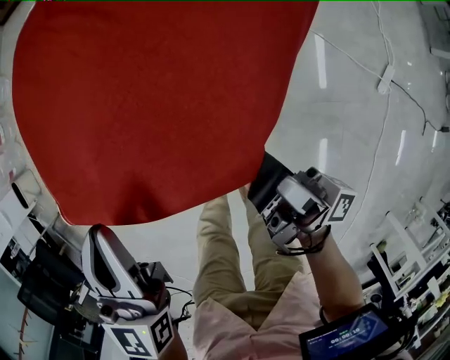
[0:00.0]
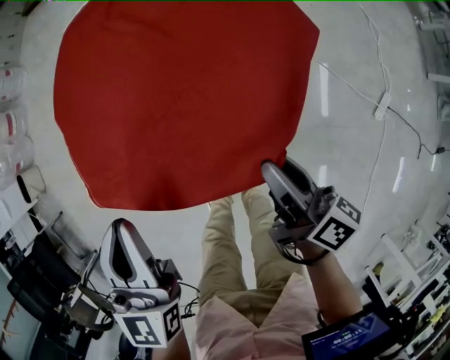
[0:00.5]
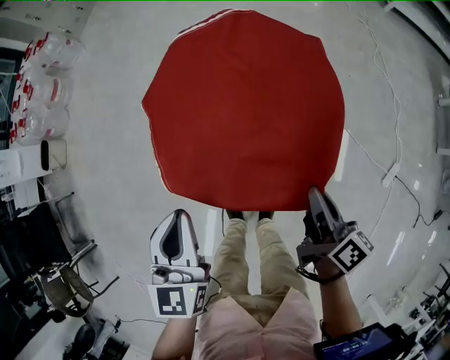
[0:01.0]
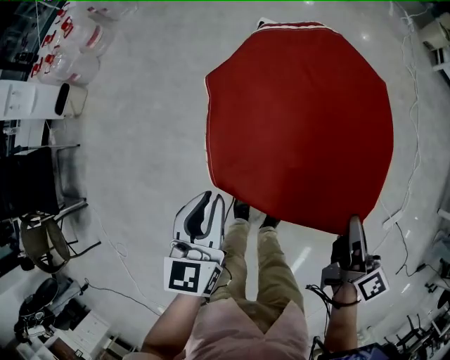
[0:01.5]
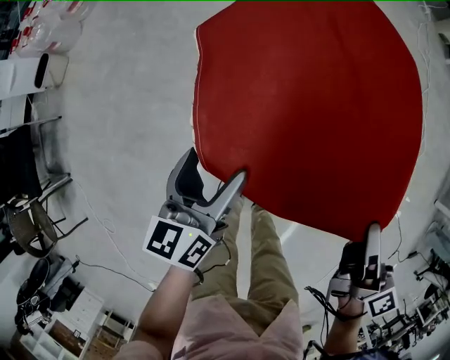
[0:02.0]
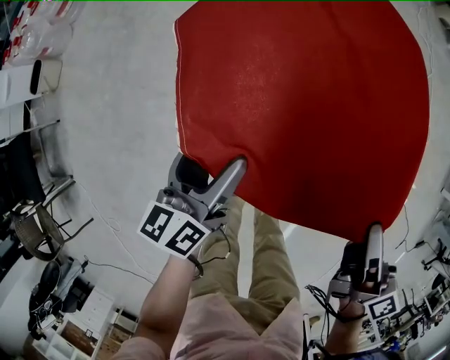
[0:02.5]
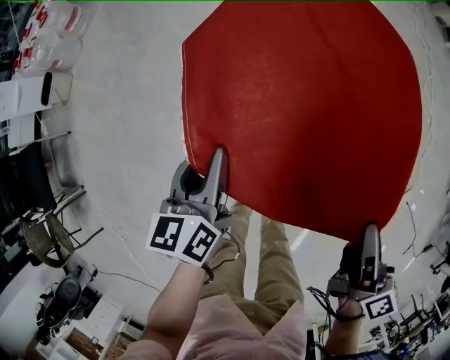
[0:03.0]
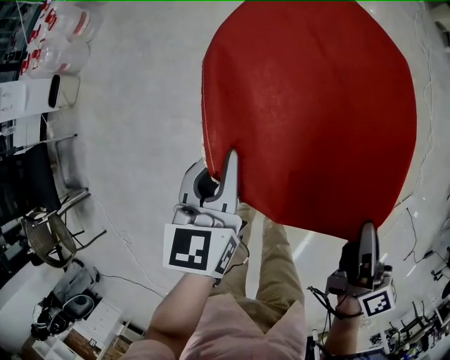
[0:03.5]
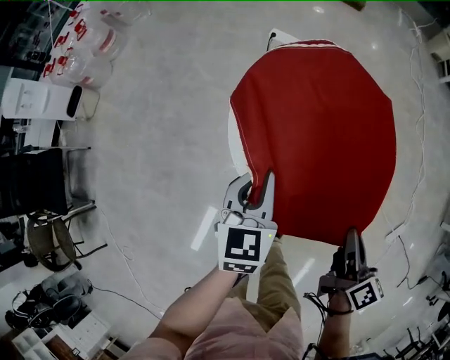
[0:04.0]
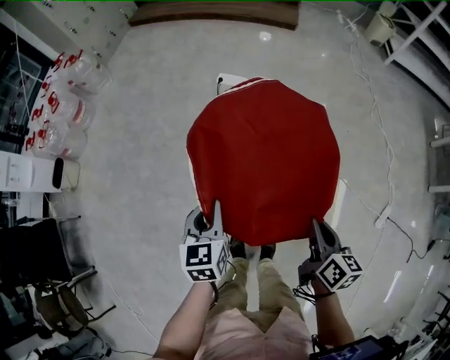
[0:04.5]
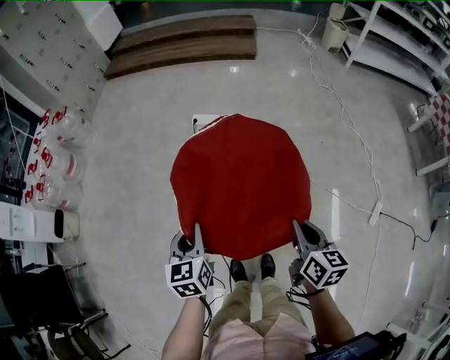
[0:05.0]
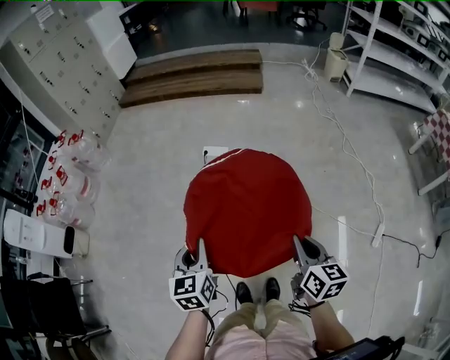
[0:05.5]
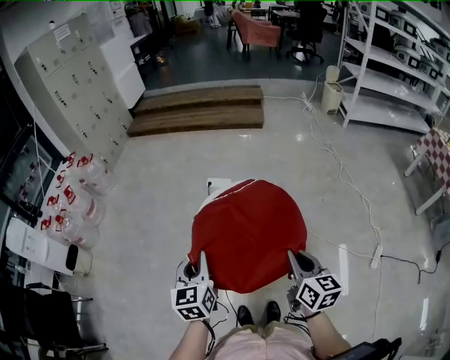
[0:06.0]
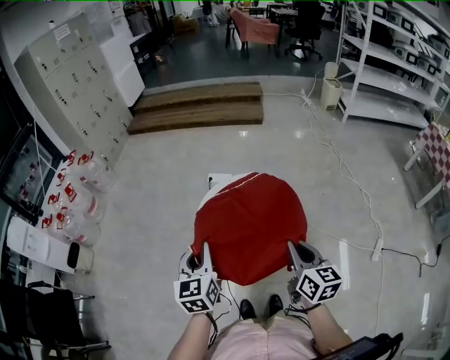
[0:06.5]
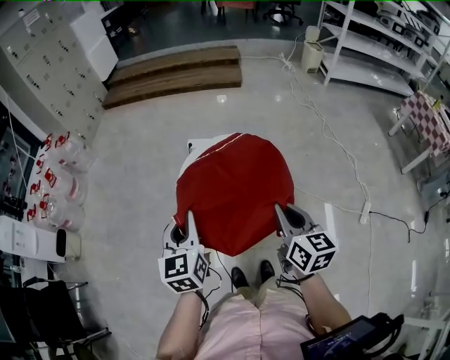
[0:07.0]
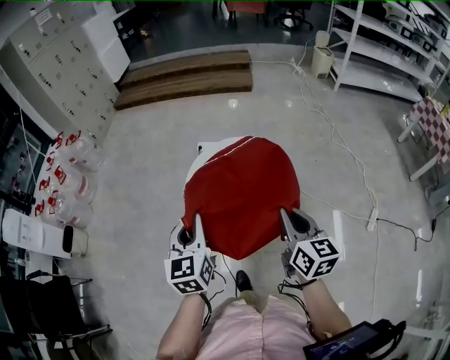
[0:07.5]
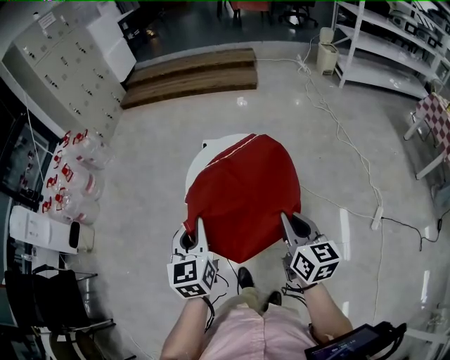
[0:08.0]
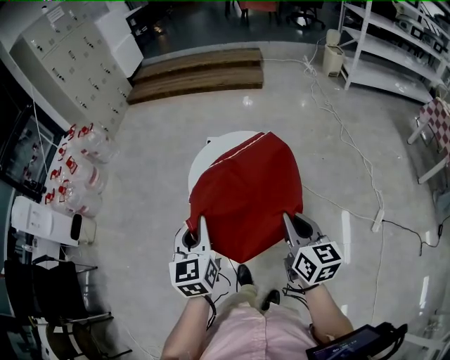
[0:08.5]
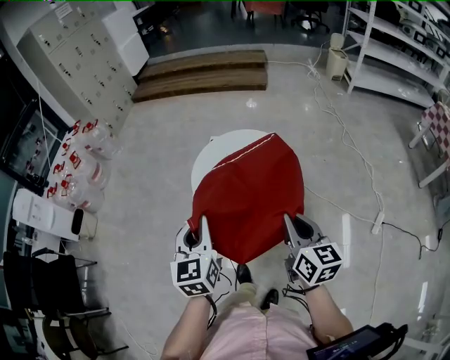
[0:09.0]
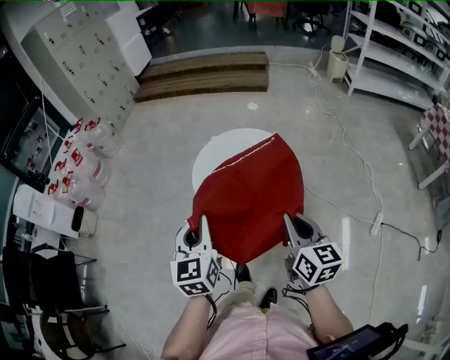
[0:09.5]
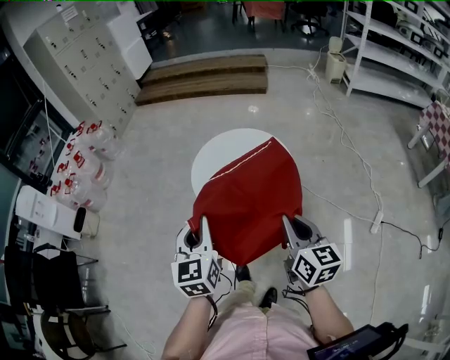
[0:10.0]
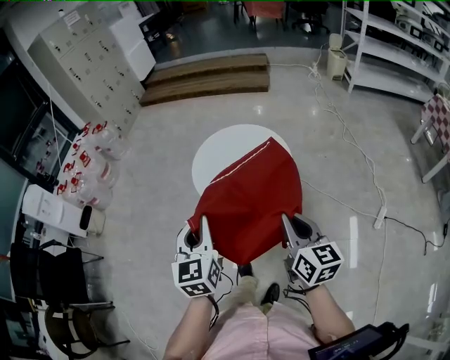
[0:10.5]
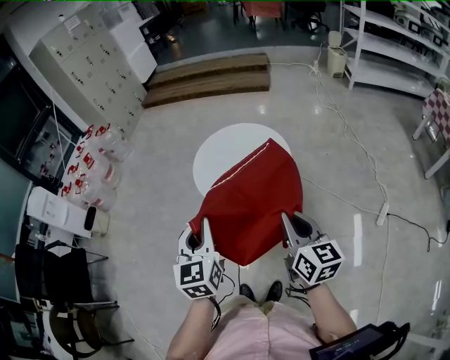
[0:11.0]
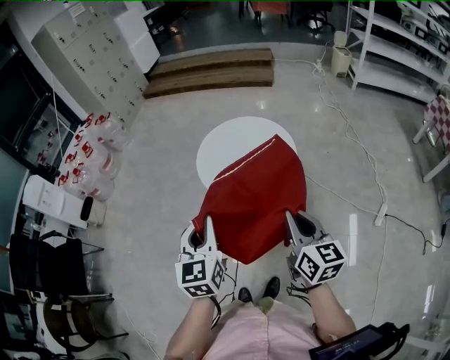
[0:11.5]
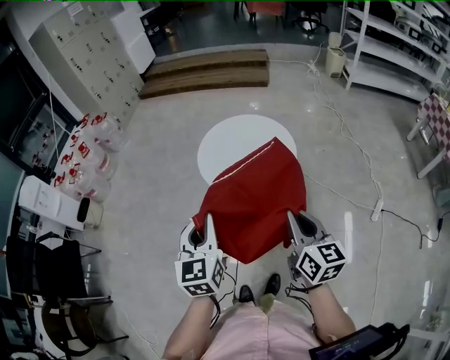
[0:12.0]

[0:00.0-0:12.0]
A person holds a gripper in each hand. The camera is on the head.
0:00.0 to 0:02.0: The right gripper heads upward, covering roughly 10 cm, tips its fingers downward by roughly 30 degrees, and closes up. The left gripper is displaced to the left and downward by roughly 15 cm, swivels some 30 degrees, and opens up.
0:02.0 to 0:04.0: The left gripper shifts approximately 10 cm to the right and upward, turns by roughly 30 degrees, and closes.
0:04.0 to 0:06.0: Both grippers travel together upward, approximately 25 cm. The right gripper swivels about 30 degrees.
0:06.0 to 0:08.0: Both grippers move backward, approximately 5 cm.
0:08.0 to 0:10.0: The two grippers go approximately 10 cm backward.
0:10.0 to 0:12.0: The grippers both shift backward by some 10 cm.

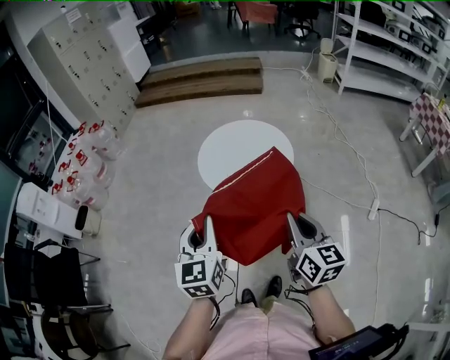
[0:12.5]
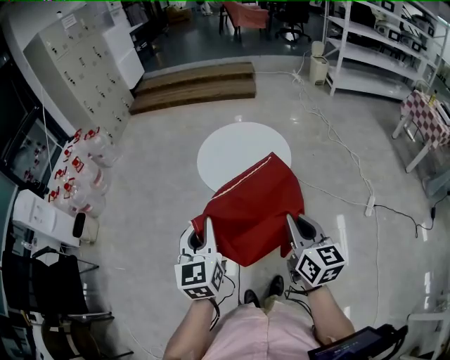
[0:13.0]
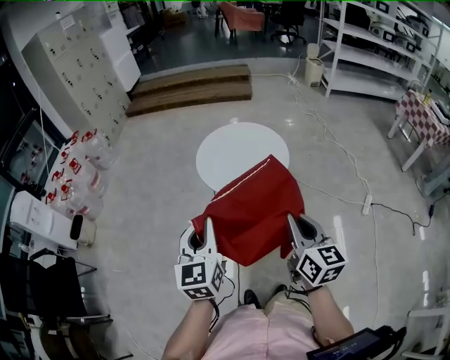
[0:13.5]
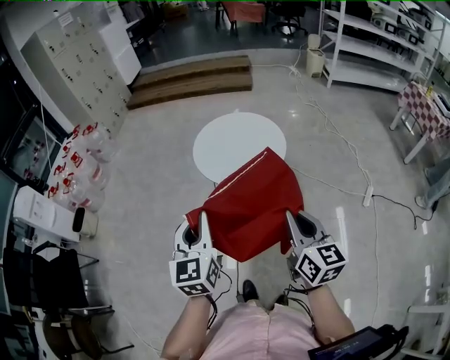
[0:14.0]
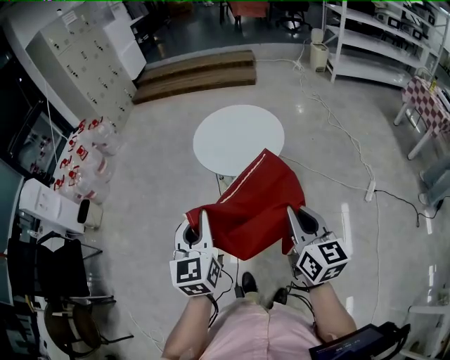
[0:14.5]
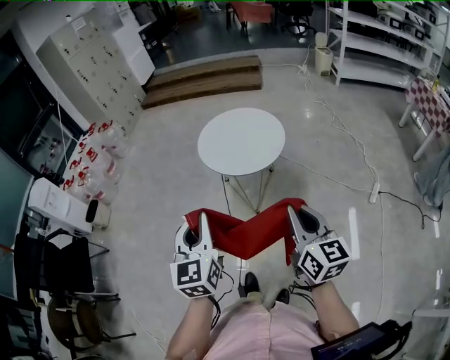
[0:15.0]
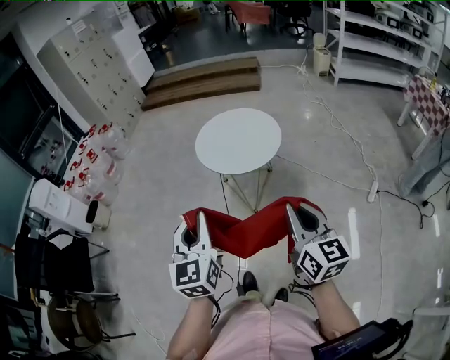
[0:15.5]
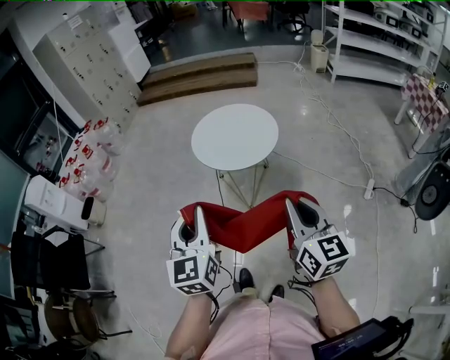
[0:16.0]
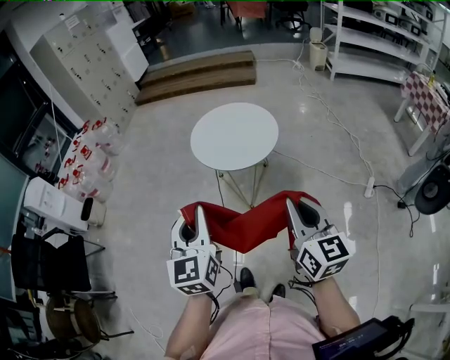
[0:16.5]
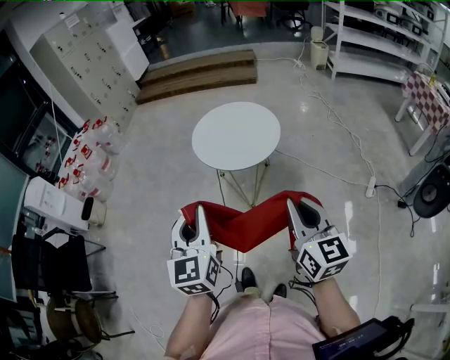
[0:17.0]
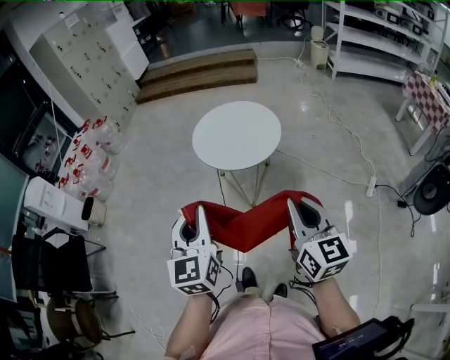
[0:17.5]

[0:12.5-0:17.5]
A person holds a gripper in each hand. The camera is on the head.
0:12.5 to 0:15.0: Both grippers travel together backward, some 15 cm.
0:15.0 to 0:17.5: The grippers make only small movements.

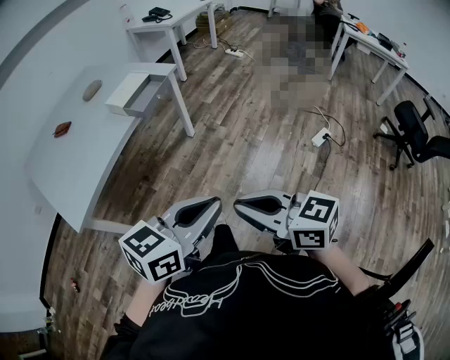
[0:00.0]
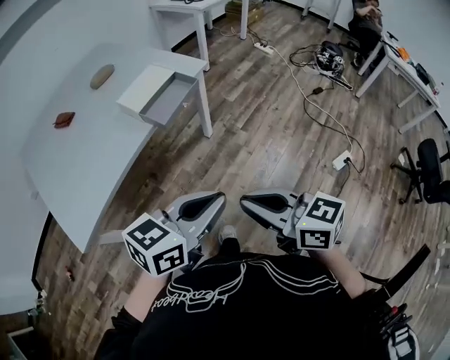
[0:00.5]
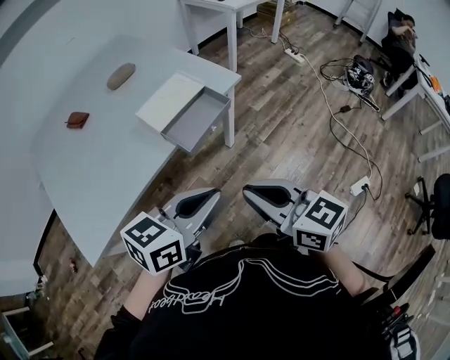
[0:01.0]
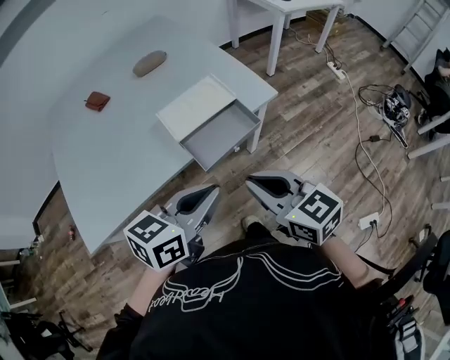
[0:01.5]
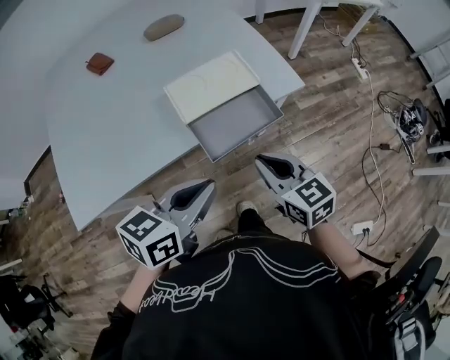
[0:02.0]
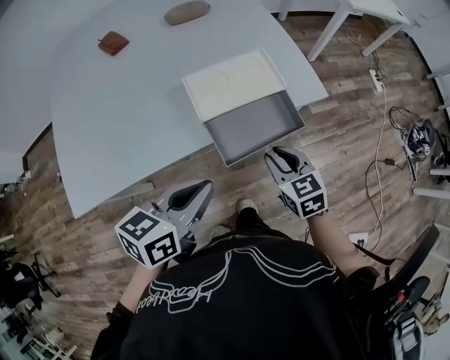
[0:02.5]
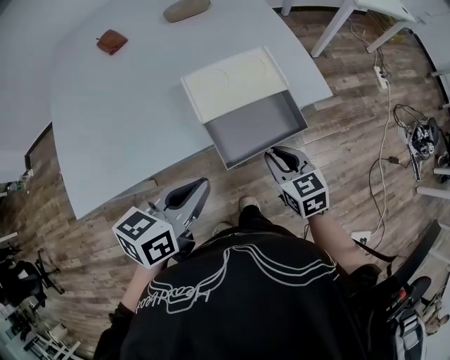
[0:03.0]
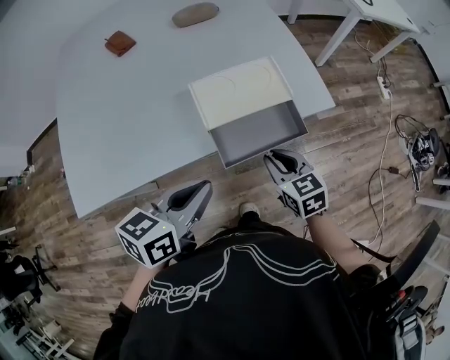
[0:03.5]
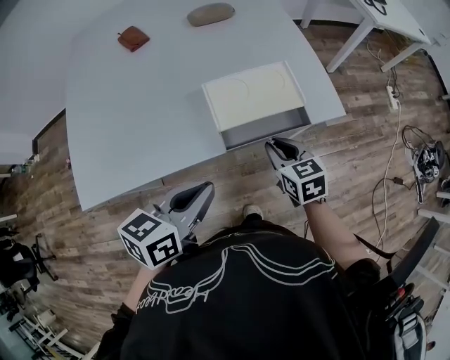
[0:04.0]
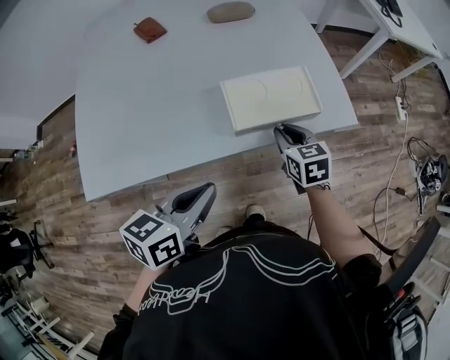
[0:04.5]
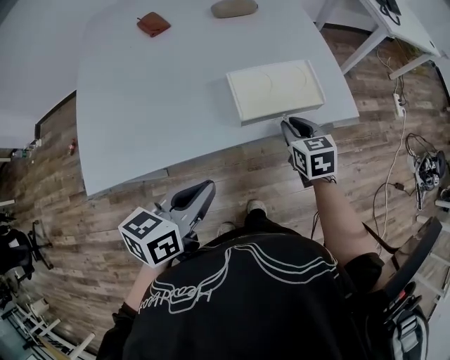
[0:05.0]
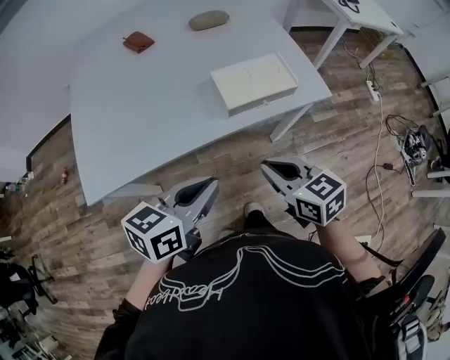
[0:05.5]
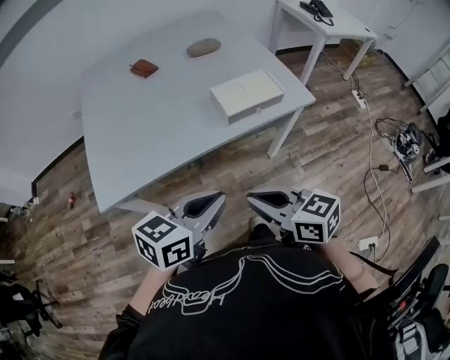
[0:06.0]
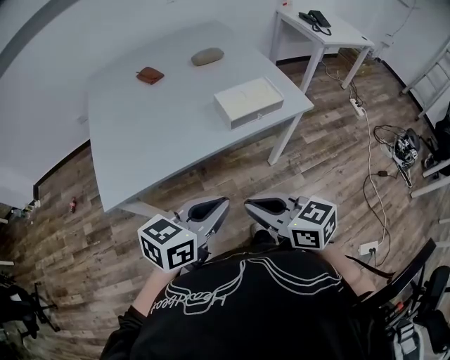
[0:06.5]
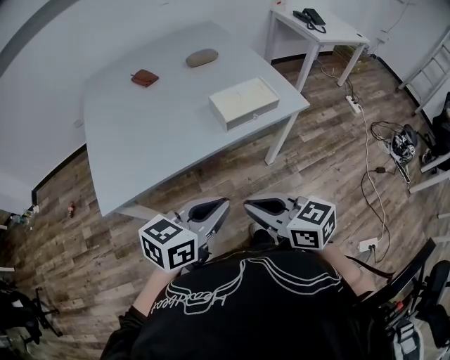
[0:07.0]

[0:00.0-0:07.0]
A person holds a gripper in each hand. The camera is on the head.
0:00.0 to 0:02.0: The pair of grippers is taken about 50 cm. The left gripper turns by some 40 degrees, while the right gripper rotates roughly 20 degrees.
0:02.0 to 0:03.5: The right gripper shifts some 10 cm downward and forward. The left gripper goes about 5 cm to the left.
0:03.5 to 0:05.0: The right gripper is displaced forward by approximately 10 cm. Meanwhile the left gripper moves to the left, about 5 cm.
0:05.0 to 0:07.0: The left gripper goes some 15 cm backward and upward, and swivels about 20 degrees; the right gripper travels backward and upward by roughly 35 cm, and swivels about 30 degrees.

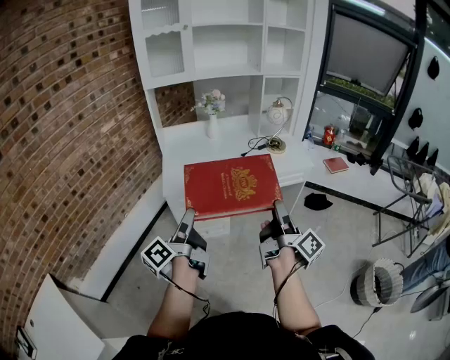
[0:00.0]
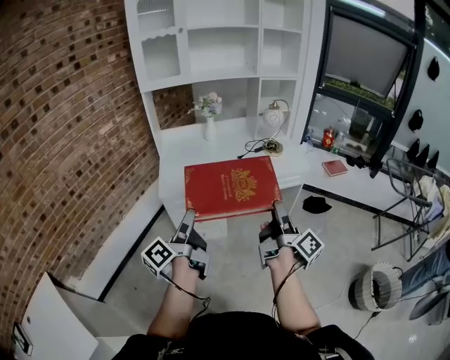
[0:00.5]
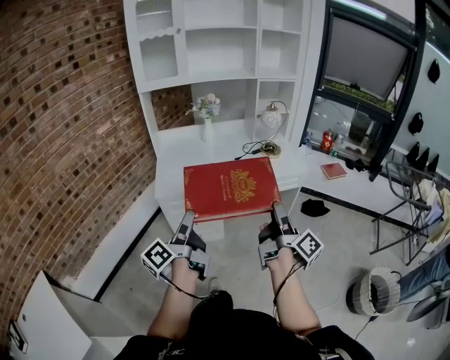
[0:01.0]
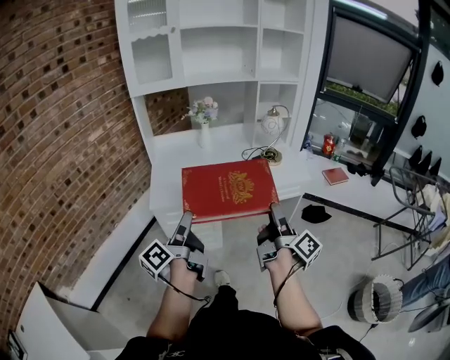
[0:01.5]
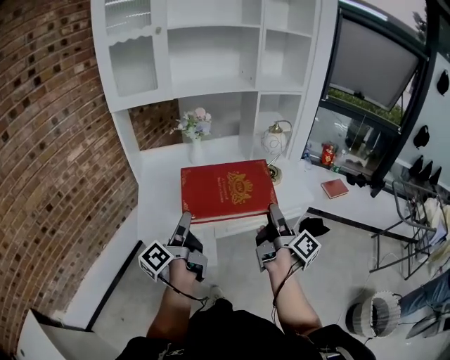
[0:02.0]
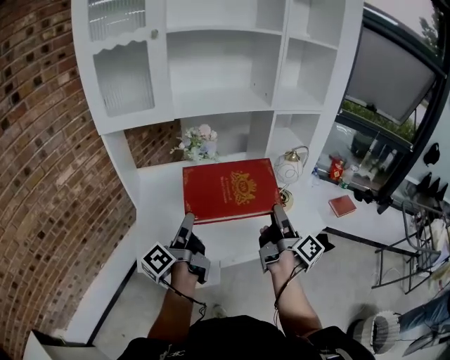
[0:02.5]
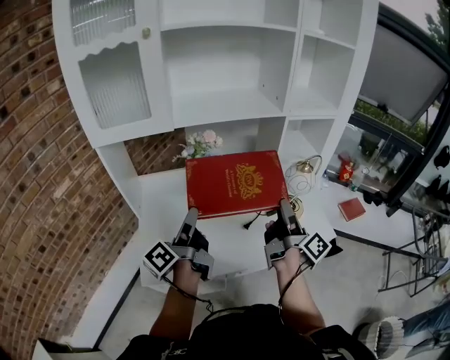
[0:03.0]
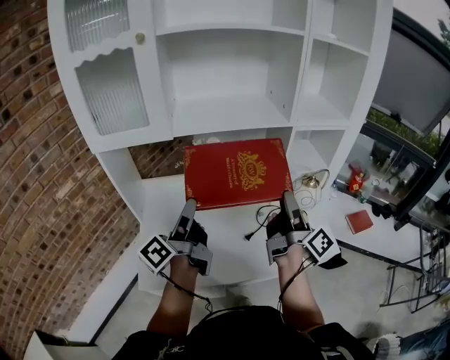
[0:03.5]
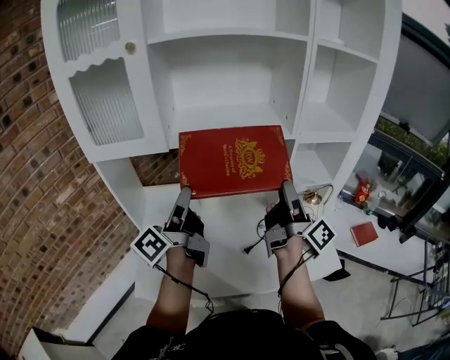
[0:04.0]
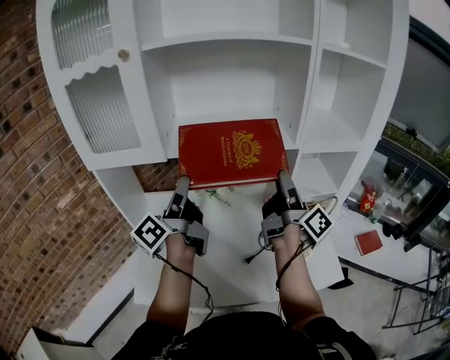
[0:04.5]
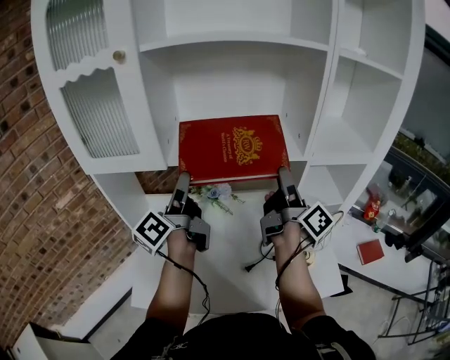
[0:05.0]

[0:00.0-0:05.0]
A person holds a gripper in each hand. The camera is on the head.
0:00.0 to 0:02.5: The two grippers travel together, forward, roughly 50 cm.
0:02.5 to 0:05.0: The left gripper goes roughly 35 cm forward and upward, and swivels roughly 20 degrees. Meanwhile the right gripper goes roughly 35 cm forward.
